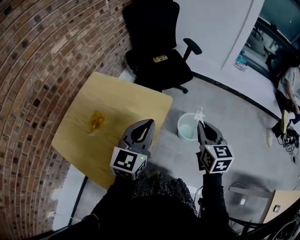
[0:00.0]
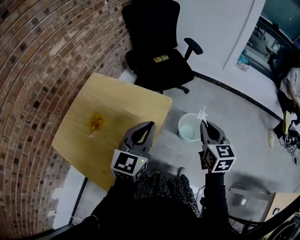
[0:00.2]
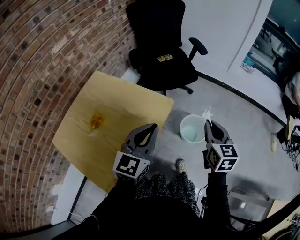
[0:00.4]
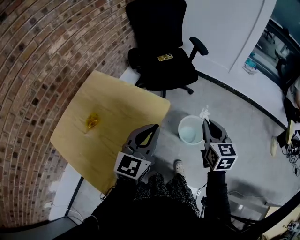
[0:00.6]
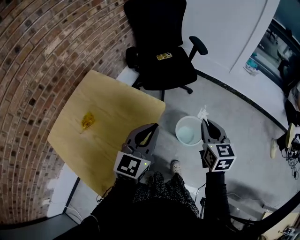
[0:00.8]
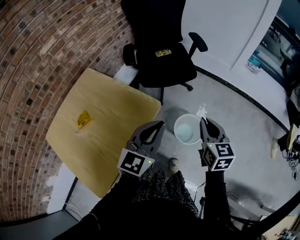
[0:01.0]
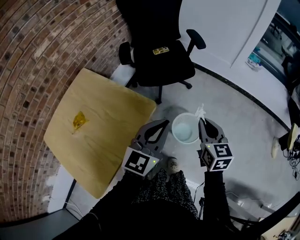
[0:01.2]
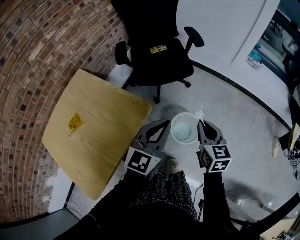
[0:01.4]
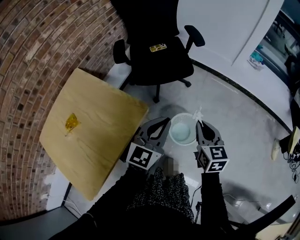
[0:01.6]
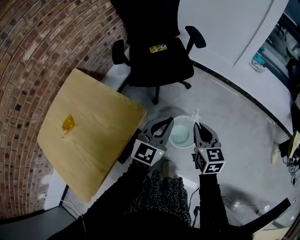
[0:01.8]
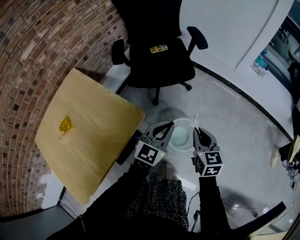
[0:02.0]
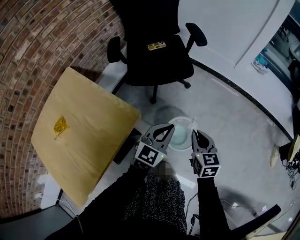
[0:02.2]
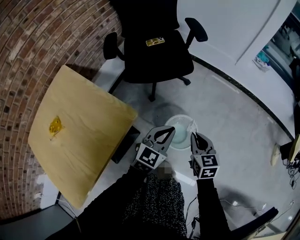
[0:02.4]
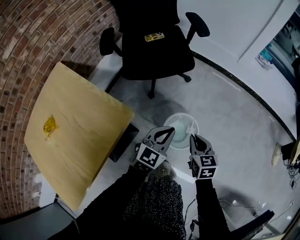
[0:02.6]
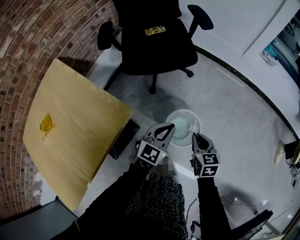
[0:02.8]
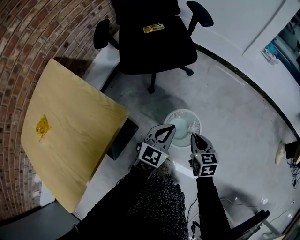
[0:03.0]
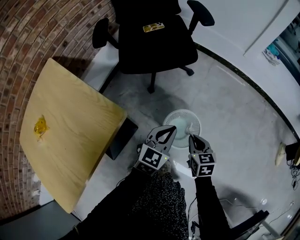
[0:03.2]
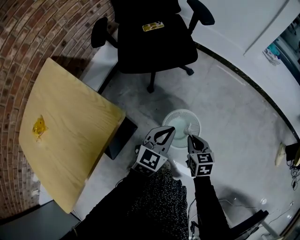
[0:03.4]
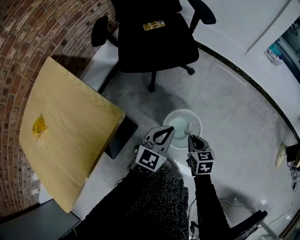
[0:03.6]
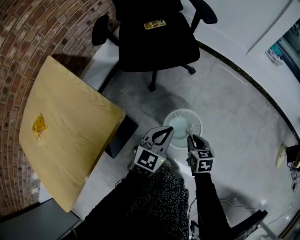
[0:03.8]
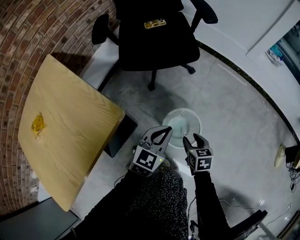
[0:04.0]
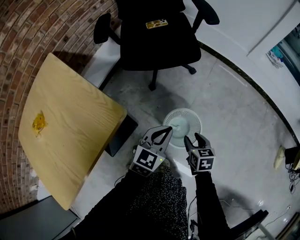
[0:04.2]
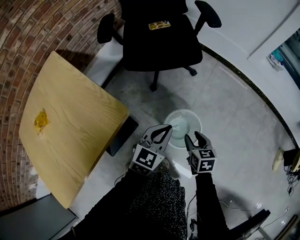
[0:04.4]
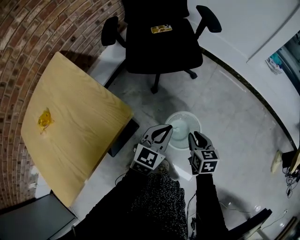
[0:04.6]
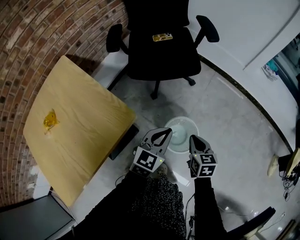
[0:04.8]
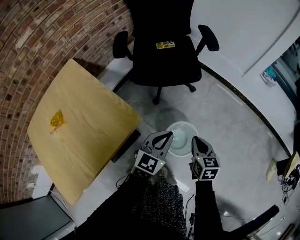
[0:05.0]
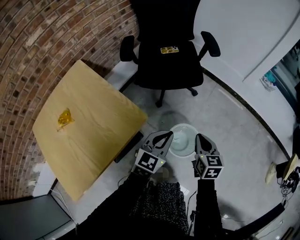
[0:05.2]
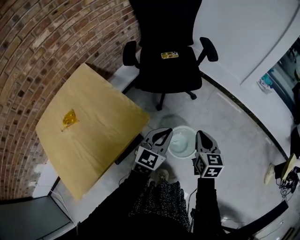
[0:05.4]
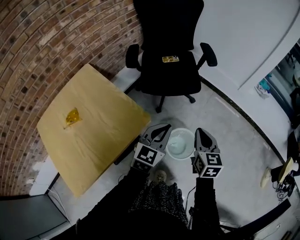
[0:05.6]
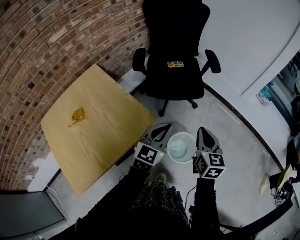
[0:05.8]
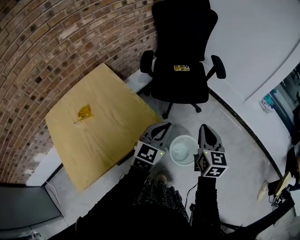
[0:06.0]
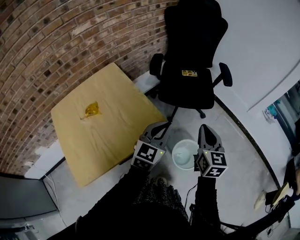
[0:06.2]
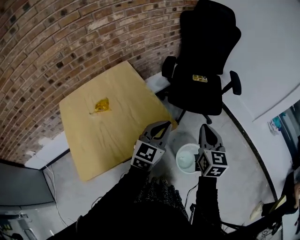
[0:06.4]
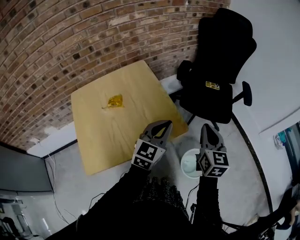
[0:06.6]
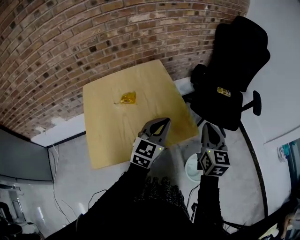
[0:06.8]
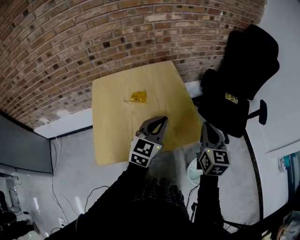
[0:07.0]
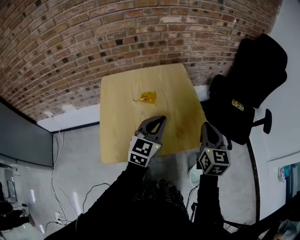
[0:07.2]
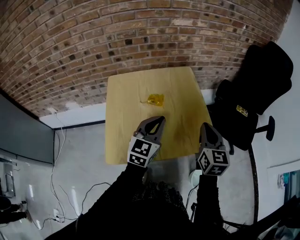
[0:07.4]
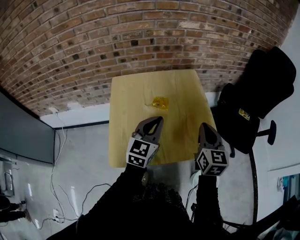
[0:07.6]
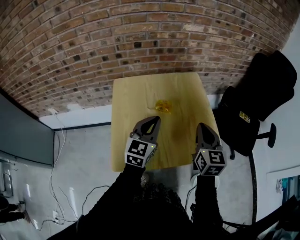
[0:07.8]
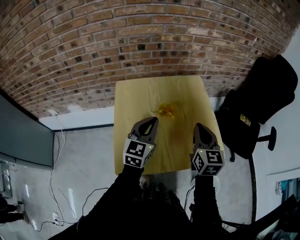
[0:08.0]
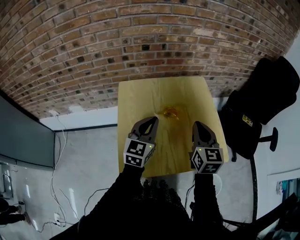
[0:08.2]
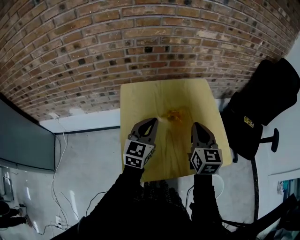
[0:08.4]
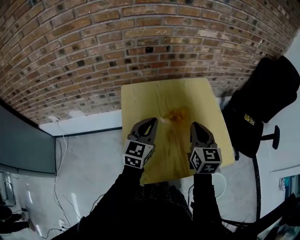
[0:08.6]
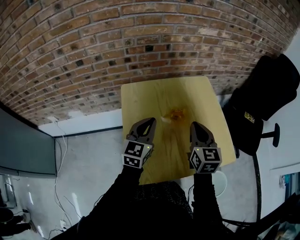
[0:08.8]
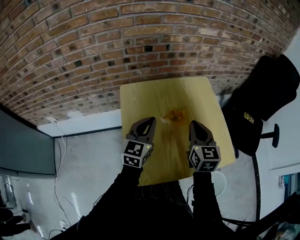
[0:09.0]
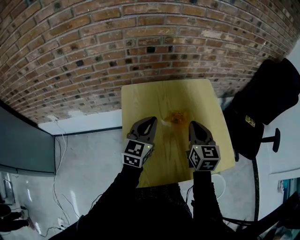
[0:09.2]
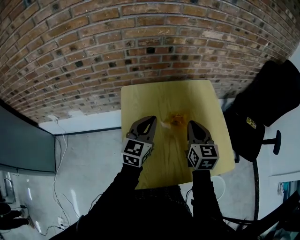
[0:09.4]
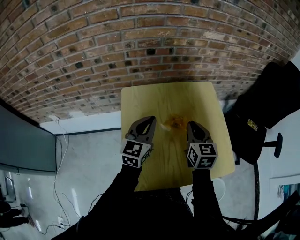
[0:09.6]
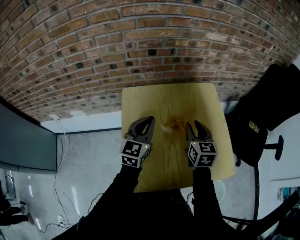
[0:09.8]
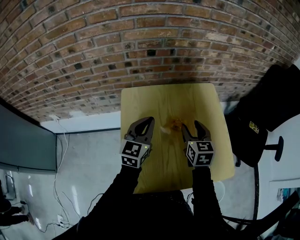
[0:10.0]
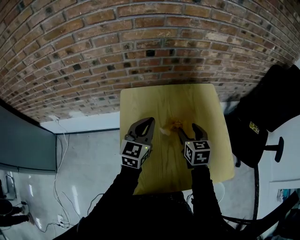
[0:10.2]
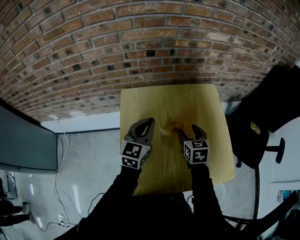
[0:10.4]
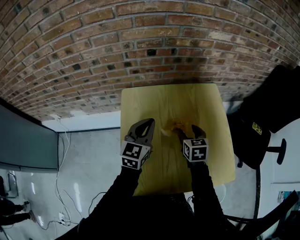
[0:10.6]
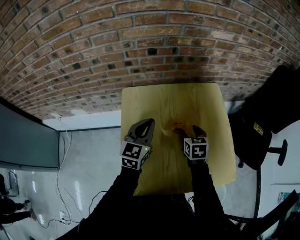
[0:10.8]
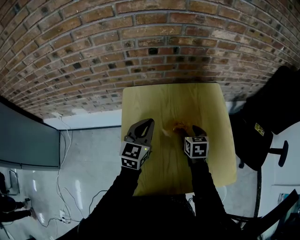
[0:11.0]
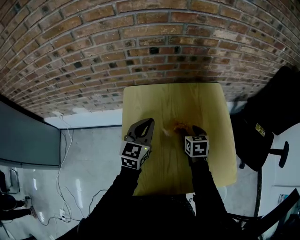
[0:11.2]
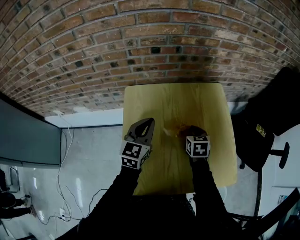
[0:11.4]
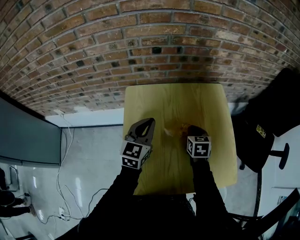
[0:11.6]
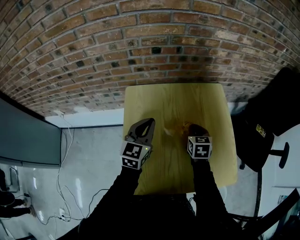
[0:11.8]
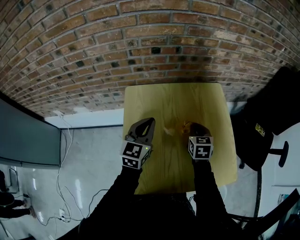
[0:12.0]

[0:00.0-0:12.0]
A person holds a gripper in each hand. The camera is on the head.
0:00.0 to 0:01.6: The right gripper heads forward, to the right and downward, covering approximately 25 cm. Meanwhile the left gripper travels to the right, forward and downward by about 25 cm.
0:01.6 to 0:03.0: Both grippers move downward, approximately 25 cm.
0:03.0 to 0:04.4: The right gripper opens its fingers.
0:04.4 to 0:06.0: The right gripper shifts roughly 35 cm upward, turns by some 30 degrees, and closes up. Meanwhile the left gripper heads upward and to the left, covering some 25 cm.
0:06.0 to 0:07.6: The left gripper changes place by roughly 40 cm, and rotates roughly 40 degrees; the right gripper ends up roughly 35 cm from where it was, and swivels roughly 40 degrees.
0:07.6 to 0:09.0: The two grippers go some 15 cm to the left and forward.
0:09.0 to 0:10.4: The right gripper goes some 15 cm downward and forward, turns by roughly 20 degrees, and opens up. Meanwhile the left gripper travels forward by roughly 5 cm.
0:10.4 to 0:12.0: The right gripper closes its fingers.

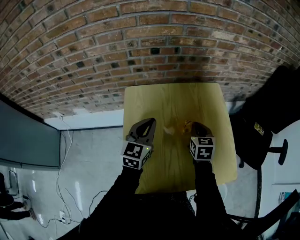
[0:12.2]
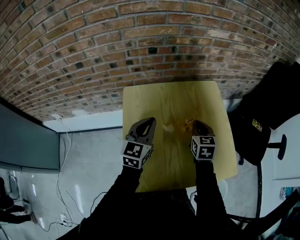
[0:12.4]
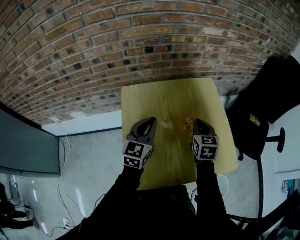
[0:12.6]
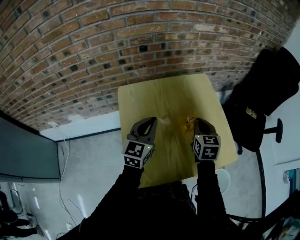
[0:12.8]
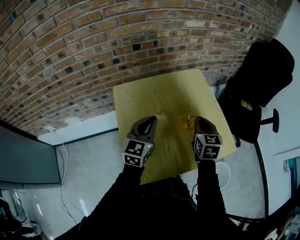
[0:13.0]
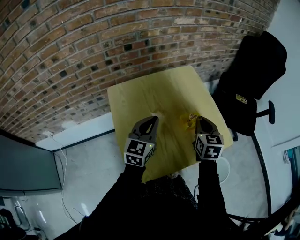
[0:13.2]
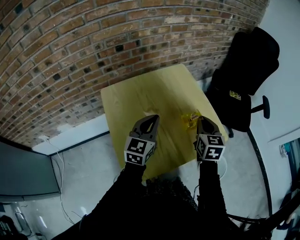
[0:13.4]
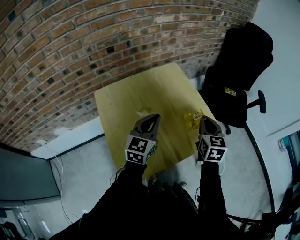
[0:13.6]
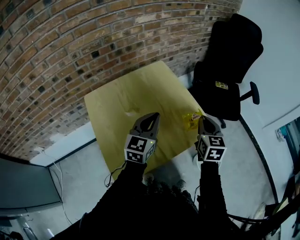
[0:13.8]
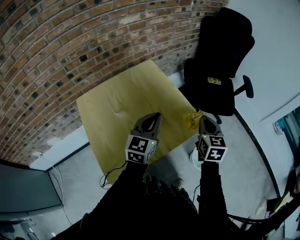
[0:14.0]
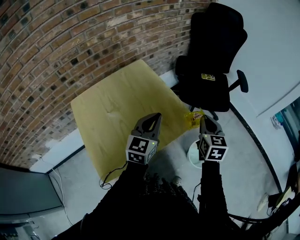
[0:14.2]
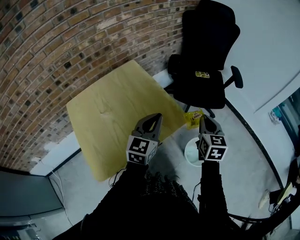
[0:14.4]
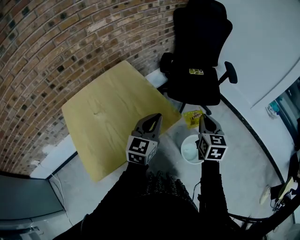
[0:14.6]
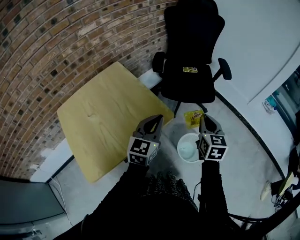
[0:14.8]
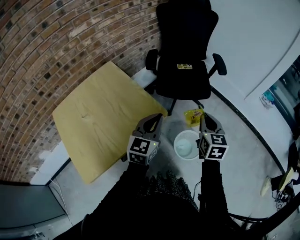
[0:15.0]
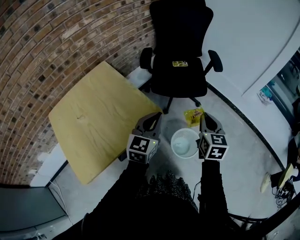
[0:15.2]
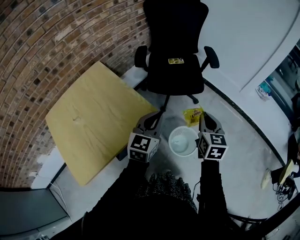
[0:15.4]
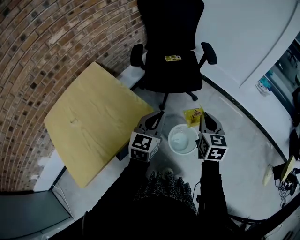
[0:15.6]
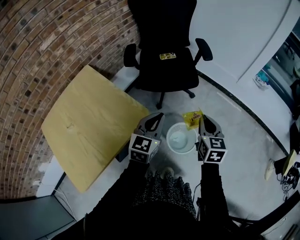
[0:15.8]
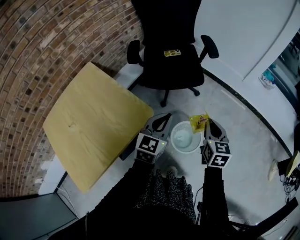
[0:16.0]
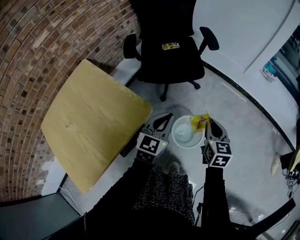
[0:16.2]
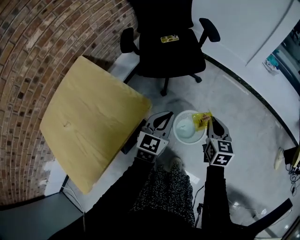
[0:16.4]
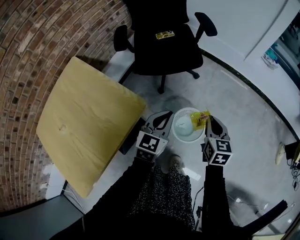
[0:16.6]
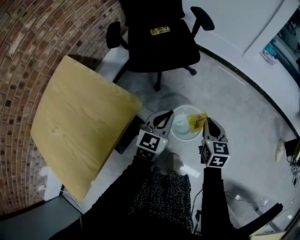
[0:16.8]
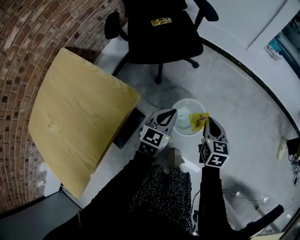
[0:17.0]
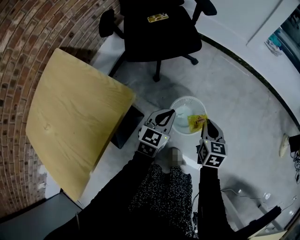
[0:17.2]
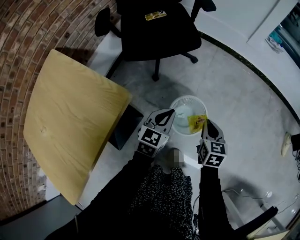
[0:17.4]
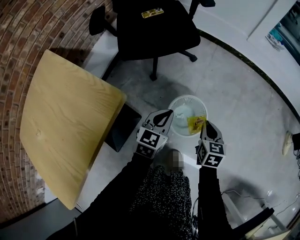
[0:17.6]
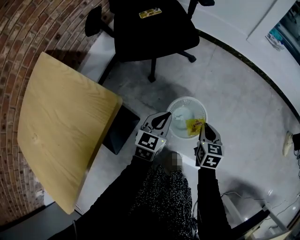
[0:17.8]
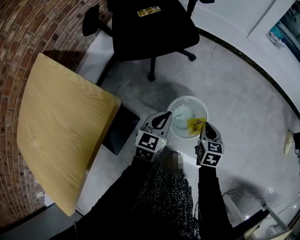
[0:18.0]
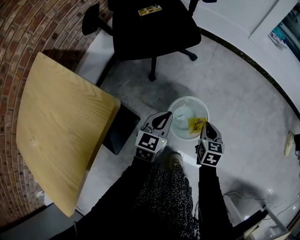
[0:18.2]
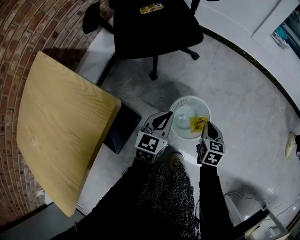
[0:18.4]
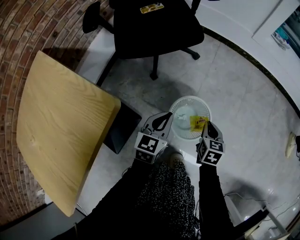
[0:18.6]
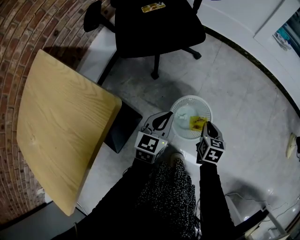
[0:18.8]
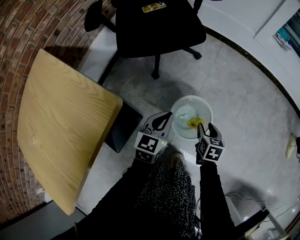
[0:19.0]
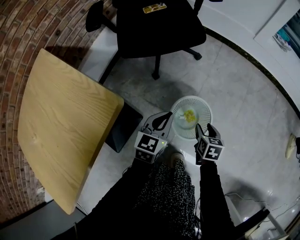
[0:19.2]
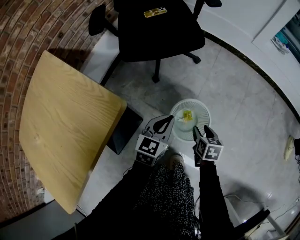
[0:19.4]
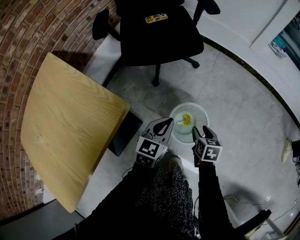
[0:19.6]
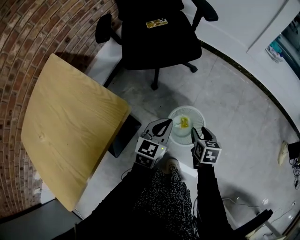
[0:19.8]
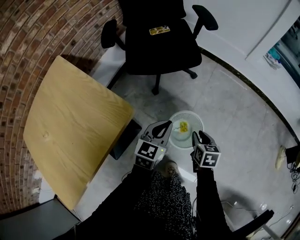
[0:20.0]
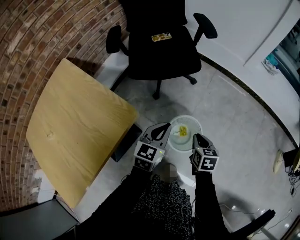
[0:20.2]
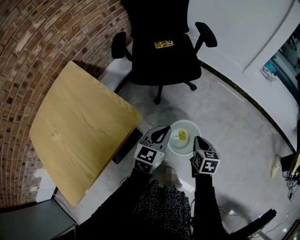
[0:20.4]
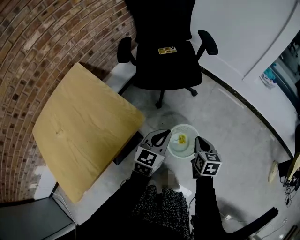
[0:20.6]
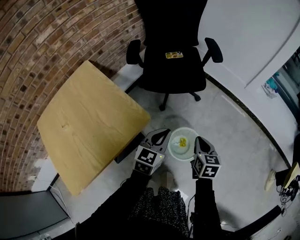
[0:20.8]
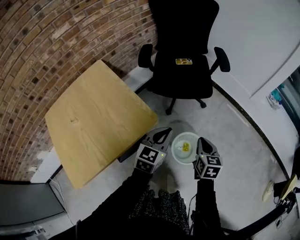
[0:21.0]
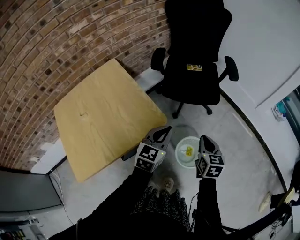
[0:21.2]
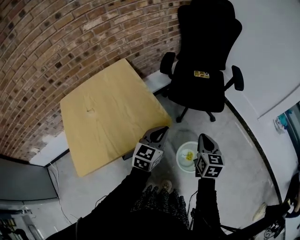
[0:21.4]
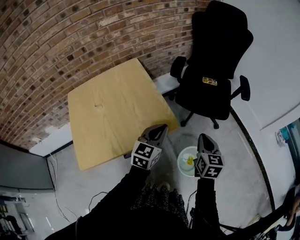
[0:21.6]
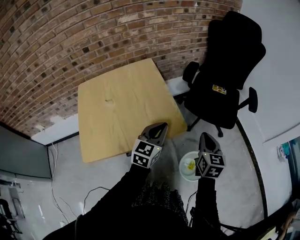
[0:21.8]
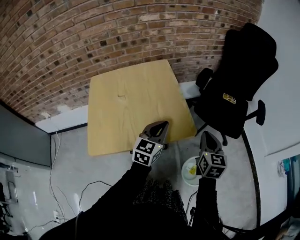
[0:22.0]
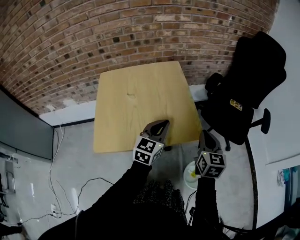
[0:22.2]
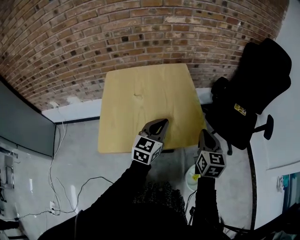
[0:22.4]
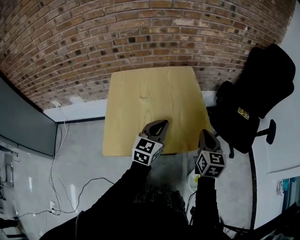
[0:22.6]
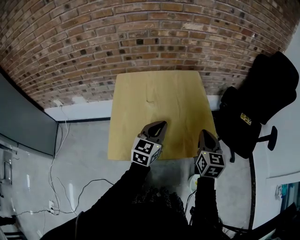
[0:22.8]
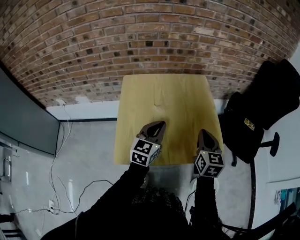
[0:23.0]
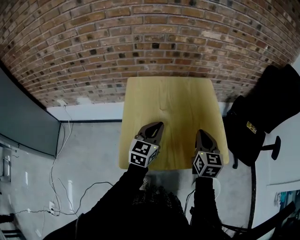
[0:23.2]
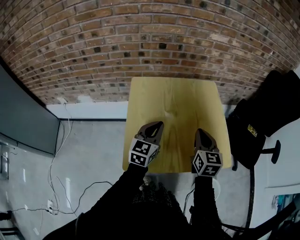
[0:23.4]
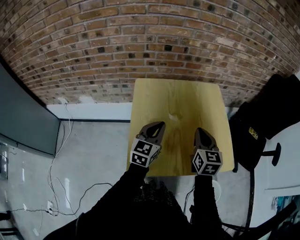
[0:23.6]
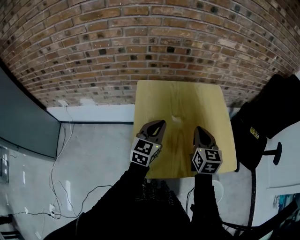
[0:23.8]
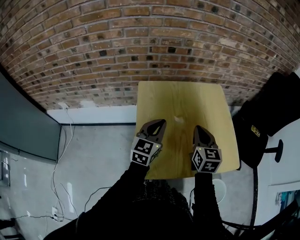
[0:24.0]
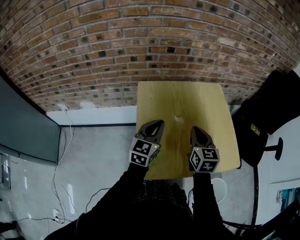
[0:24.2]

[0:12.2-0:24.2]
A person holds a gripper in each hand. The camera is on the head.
0:12.2 to 0:13.8: The left gripper ends up about 20 cm from where it was, and changes its angle by some 30 degrees. Meanwhile the right gripper moves about 30 cm, and rotates roughly 30 degrees.
0:13.8 to 0:15.2: Both grippers move to the right, some 30 cm.
0:15.2 to 0:16.6: The grippers both shift downward and to the right by approximately 20 cm.
0:16.6 to 0:18.2: Both grippers move downward, approximately 25 cm.
0:18.2 to 0:19.8: The right gripper moves some 5 cm, and opens; the left gripper shifts some 5 cm upward.
0:19.8 to 0:21.2: The left gripper heads upward and to the left, covering some 25 cm, and swivels roughly 20 degrees; the right gripper shifts some 25 cm upward, swivels approximately 30 degrees, and closes.
0:21.2 to 0:22.6: The right gripper moves about 30 cm, and changes its angle by roughly 30 degrees; the left gripper moves about 30 cm, and rotates some 40 degrees.
0:22.6 to 0:24.2: The grippers both shift to the left by roughly 25 cm.
